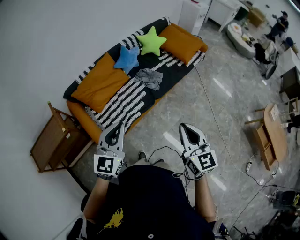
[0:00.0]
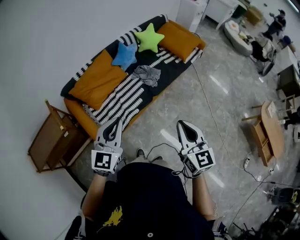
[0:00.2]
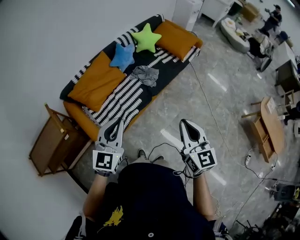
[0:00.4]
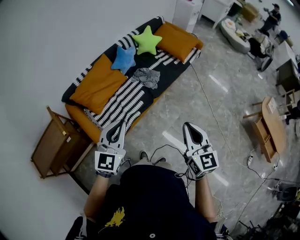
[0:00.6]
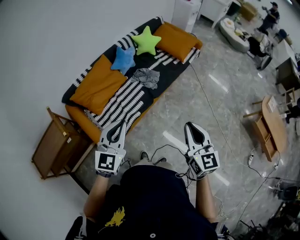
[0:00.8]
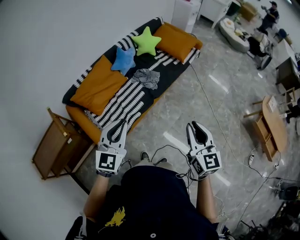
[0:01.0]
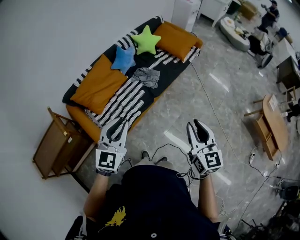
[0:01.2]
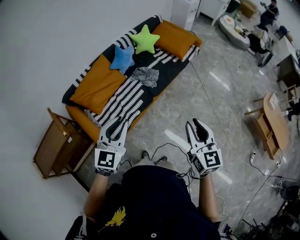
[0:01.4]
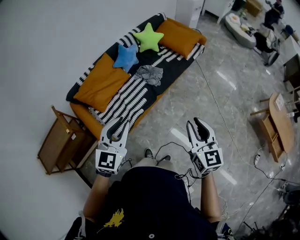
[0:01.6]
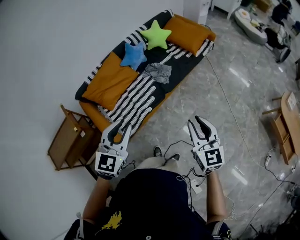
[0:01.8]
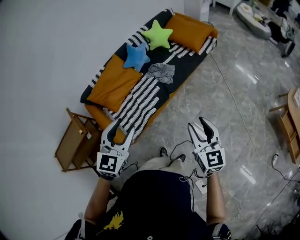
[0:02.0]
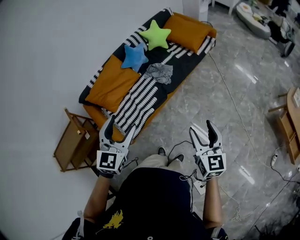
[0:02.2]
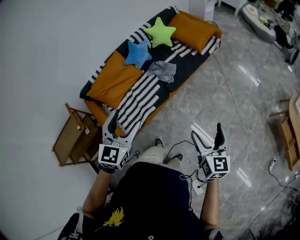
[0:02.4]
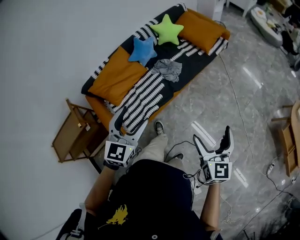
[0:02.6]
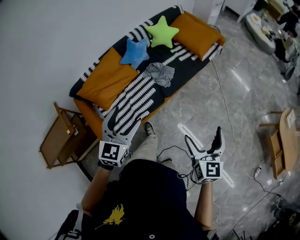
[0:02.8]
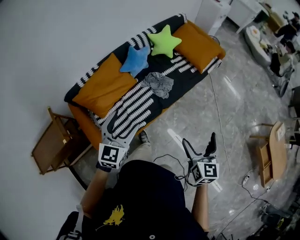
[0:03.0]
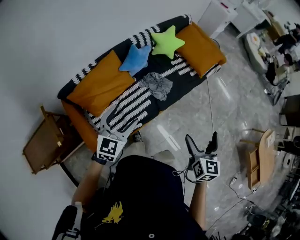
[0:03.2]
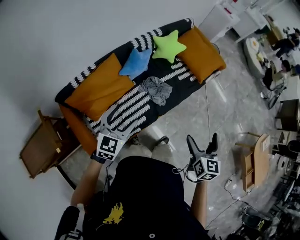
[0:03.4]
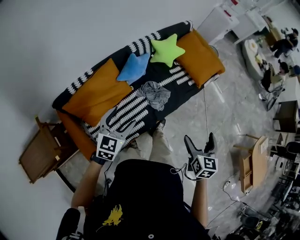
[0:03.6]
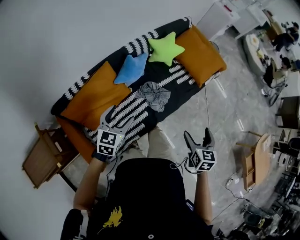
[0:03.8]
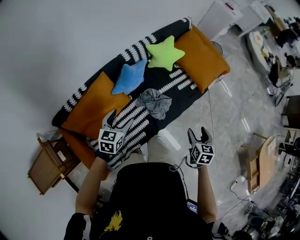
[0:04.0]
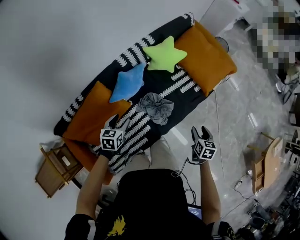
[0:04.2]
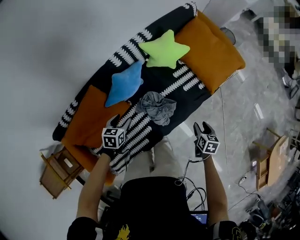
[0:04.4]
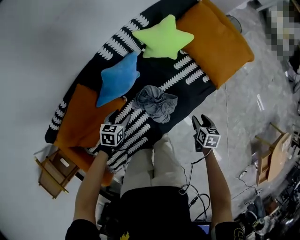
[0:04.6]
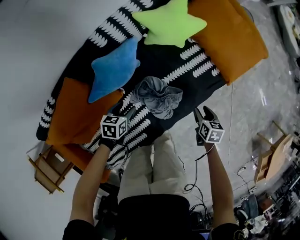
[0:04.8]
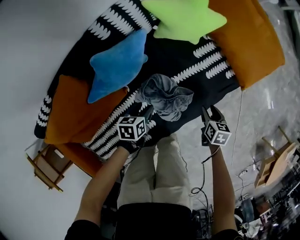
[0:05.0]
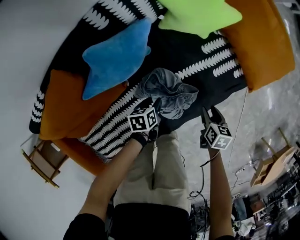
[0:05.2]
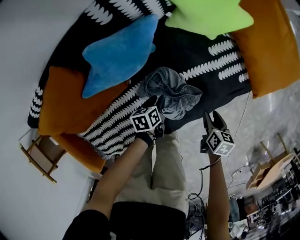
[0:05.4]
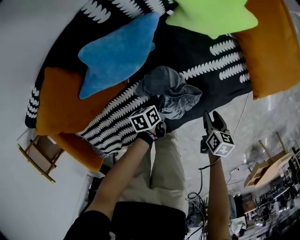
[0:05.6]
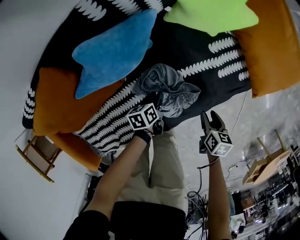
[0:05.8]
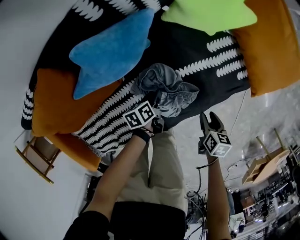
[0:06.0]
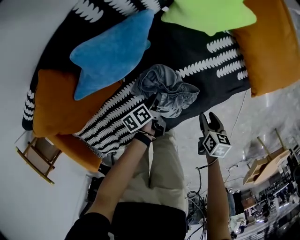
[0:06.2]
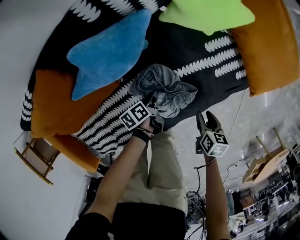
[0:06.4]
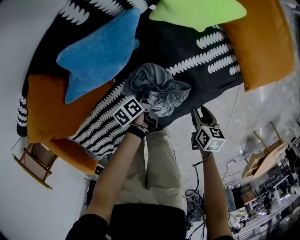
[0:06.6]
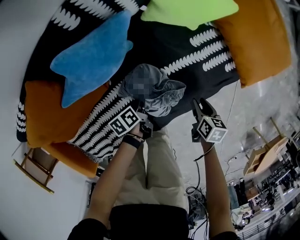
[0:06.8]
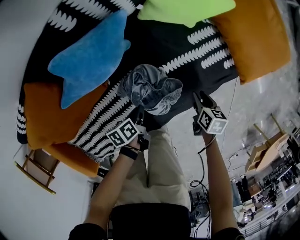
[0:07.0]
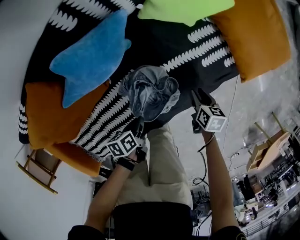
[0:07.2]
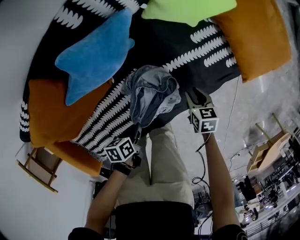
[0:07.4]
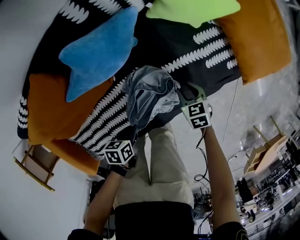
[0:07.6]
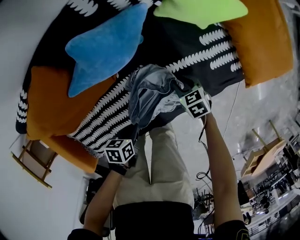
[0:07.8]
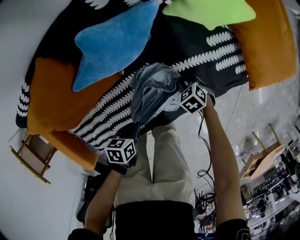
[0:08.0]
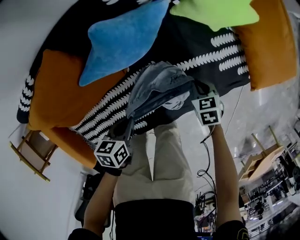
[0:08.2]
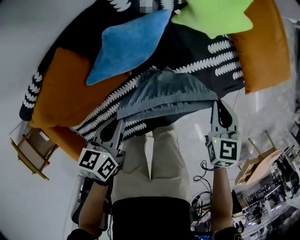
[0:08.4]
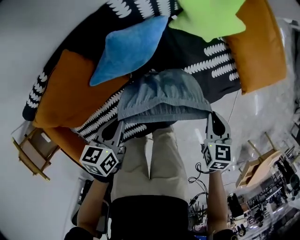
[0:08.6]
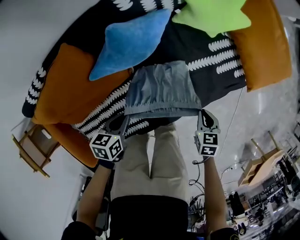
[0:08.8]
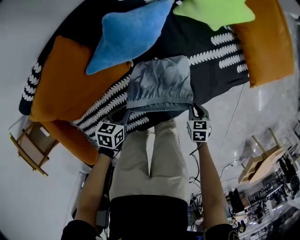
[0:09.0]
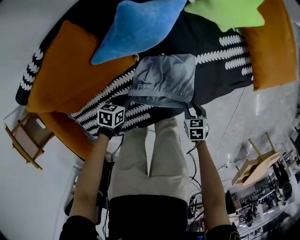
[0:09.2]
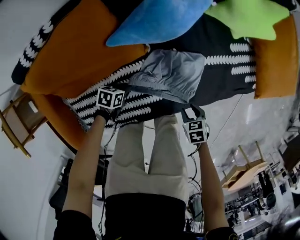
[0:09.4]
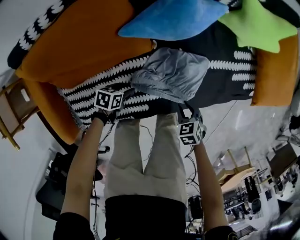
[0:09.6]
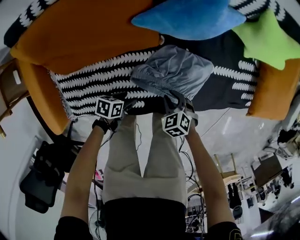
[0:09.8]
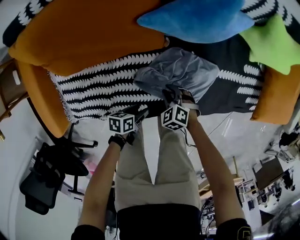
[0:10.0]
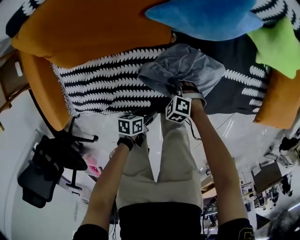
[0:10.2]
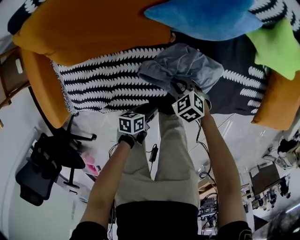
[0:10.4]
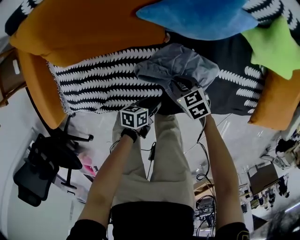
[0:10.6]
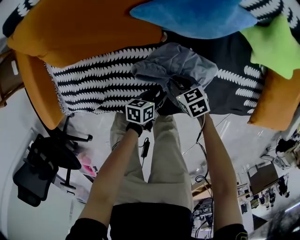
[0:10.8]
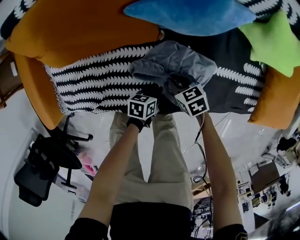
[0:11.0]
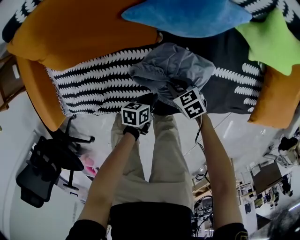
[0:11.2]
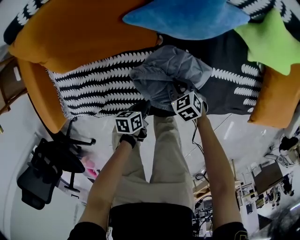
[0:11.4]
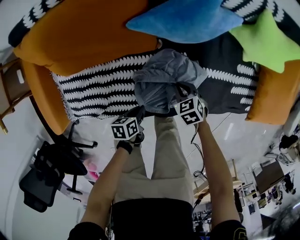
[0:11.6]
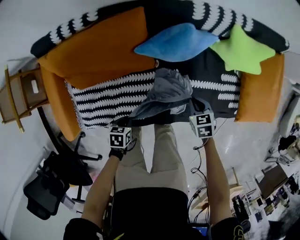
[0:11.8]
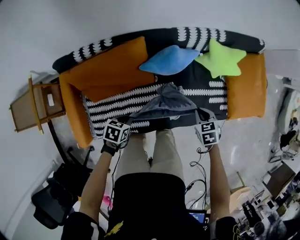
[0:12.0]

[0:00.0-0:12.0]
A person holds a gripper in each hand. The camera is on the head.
0:00.0 to 0:01.6: The right gripper goes approximately 5 cm to the right.
0:01.6 to 0:03.0: Both grippers travel together forward, roughly 25 cm. The left gripper opens; the right gripper opens up.
0:03.0 to 0:04.4: Both grippers are carried forward, roughly 50 cm. Both grippers travel together downward, about 35 cm. The right gripper points its fingers about 40 degrees further downward, and closes its fingers; the left gripper points its fingers roughly 30 degrees further downward.
0:04.4 to 0:06.0: Both grippers travel together downward, about 35 cm. The left gripper twists approximately 60 degrees counterclockwise, seen from behind.
0:06.0 to 0:07.6: The right gripper moves to the left and forward, roughly 15 cm, and turns by some 40 degrees. The left gripper shifts about 15 cm backward and upward, and turns by some 20 degrees.
0:07.6 to 0:09.0: The left gripper reaches about 20 cm upward, then returns, and changes its angle by approximately 20 degrees, while the right gripper moves up and down over about 25 cm, changing direction 2 times.
0:09.0 to 0:10.4: The right gripper changes place by some 25 cm, and rolls counterclockwise, seen from behind, by about 60 degrees. Meanwhile the left gripper changes place by roughly 20 cm, rotates around the line of its fingers by roughly 40 degrees, counterclockwise from behind, and opens up.
0:10.4 to 0:12.0: The grippers both shift upward by roughly 30 cm. The left gripper changes its angle by approximately 40 degrees, and closes. The right gripper turns by some 40 degrees.

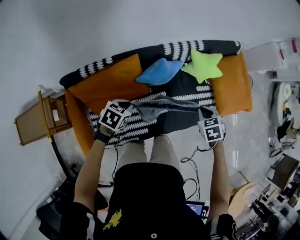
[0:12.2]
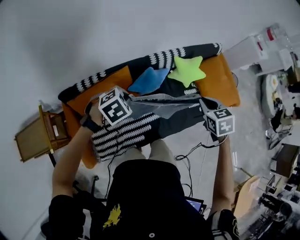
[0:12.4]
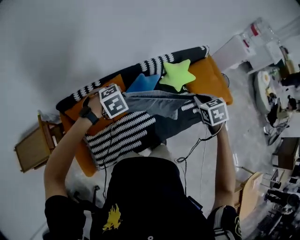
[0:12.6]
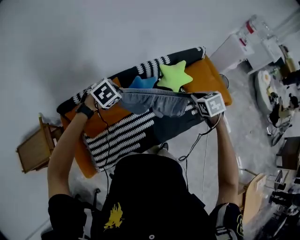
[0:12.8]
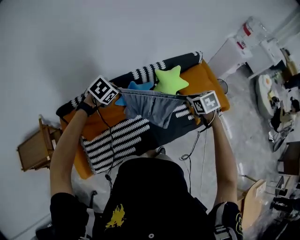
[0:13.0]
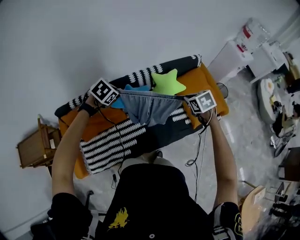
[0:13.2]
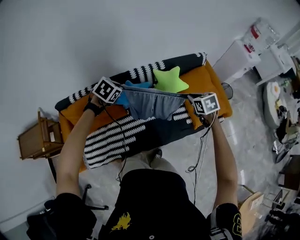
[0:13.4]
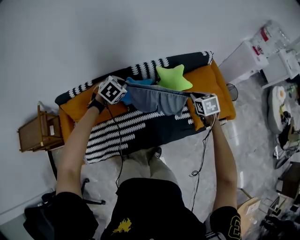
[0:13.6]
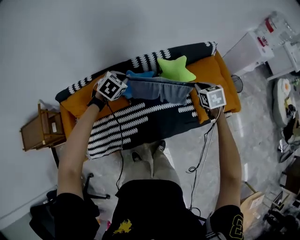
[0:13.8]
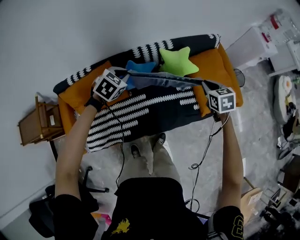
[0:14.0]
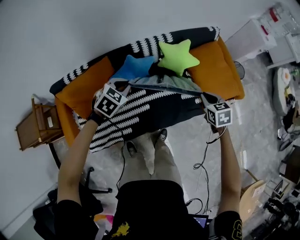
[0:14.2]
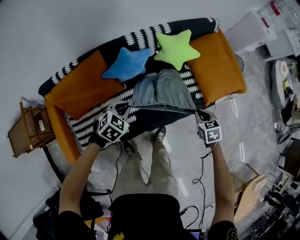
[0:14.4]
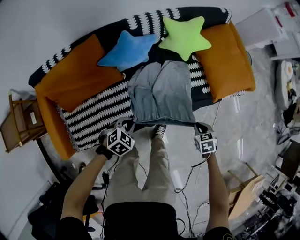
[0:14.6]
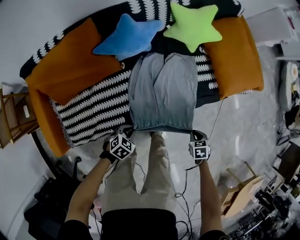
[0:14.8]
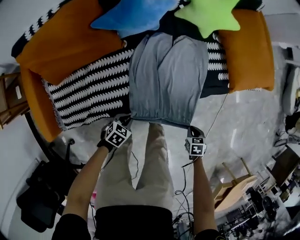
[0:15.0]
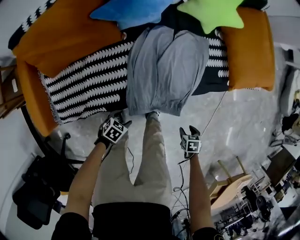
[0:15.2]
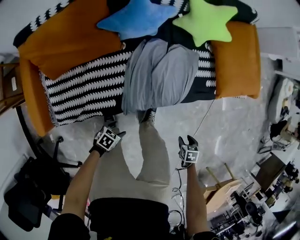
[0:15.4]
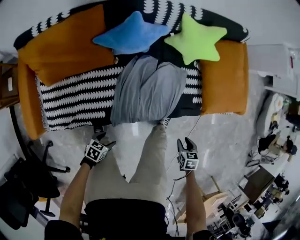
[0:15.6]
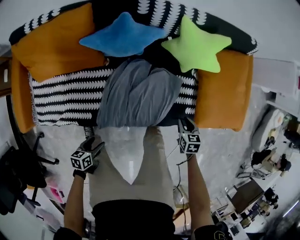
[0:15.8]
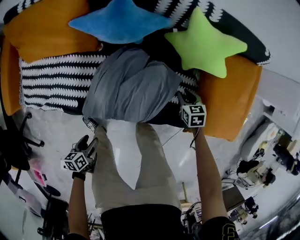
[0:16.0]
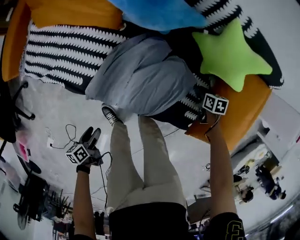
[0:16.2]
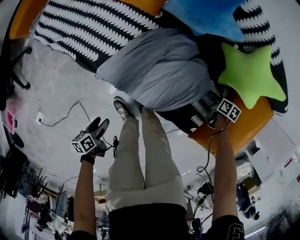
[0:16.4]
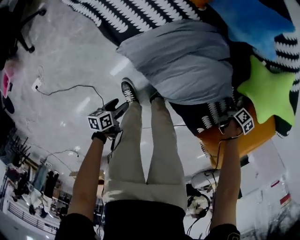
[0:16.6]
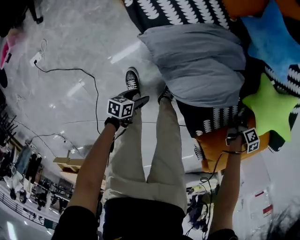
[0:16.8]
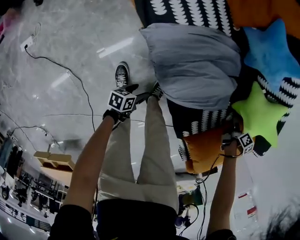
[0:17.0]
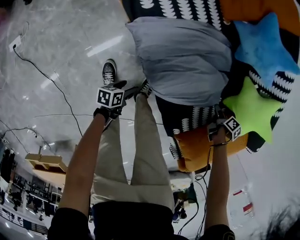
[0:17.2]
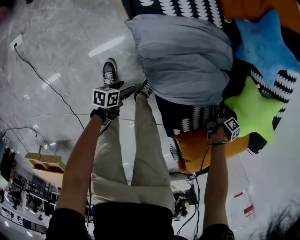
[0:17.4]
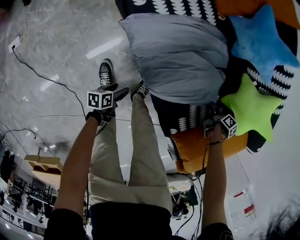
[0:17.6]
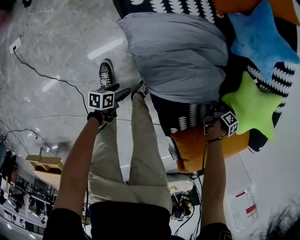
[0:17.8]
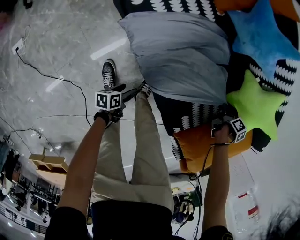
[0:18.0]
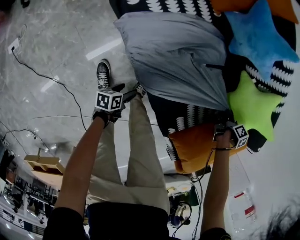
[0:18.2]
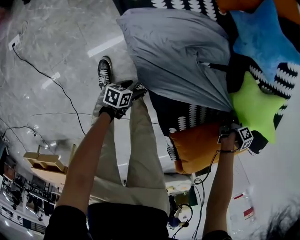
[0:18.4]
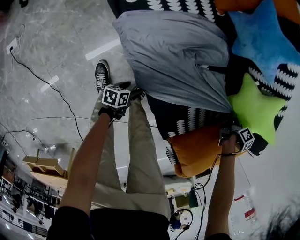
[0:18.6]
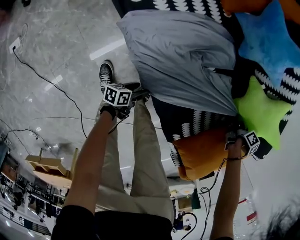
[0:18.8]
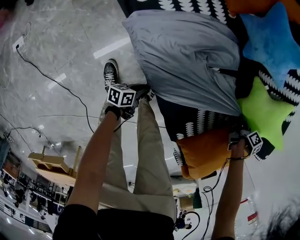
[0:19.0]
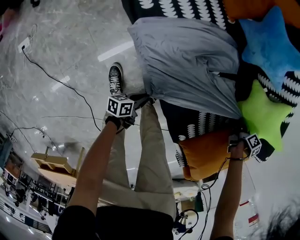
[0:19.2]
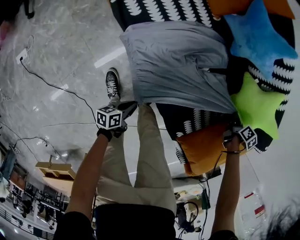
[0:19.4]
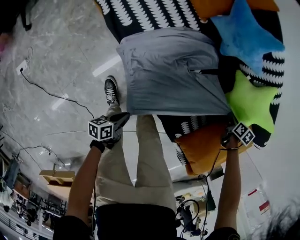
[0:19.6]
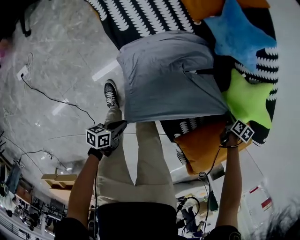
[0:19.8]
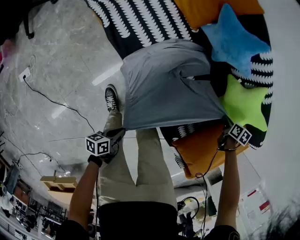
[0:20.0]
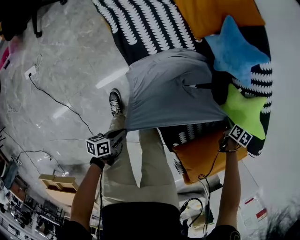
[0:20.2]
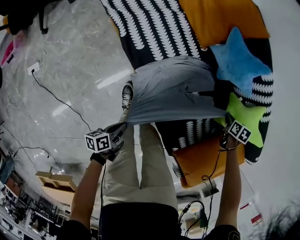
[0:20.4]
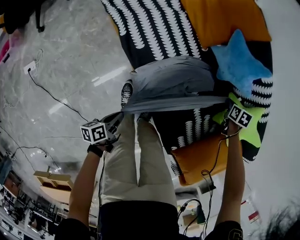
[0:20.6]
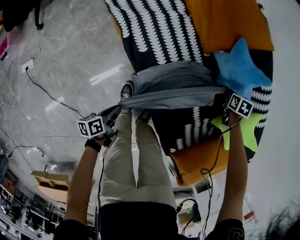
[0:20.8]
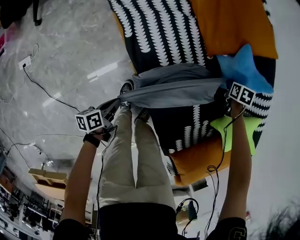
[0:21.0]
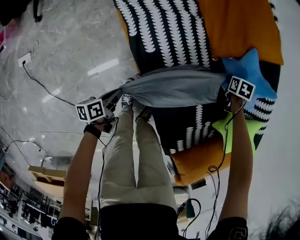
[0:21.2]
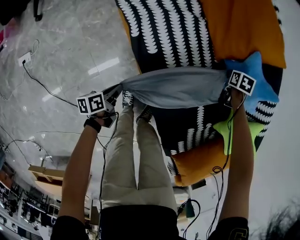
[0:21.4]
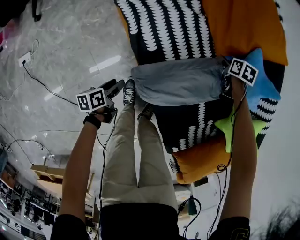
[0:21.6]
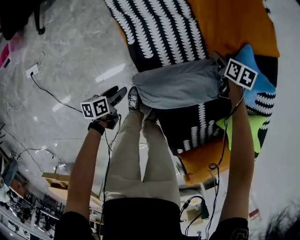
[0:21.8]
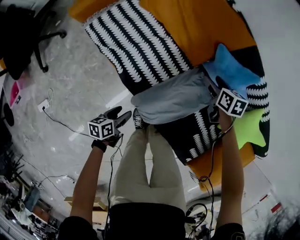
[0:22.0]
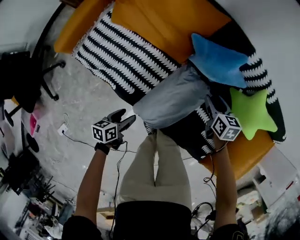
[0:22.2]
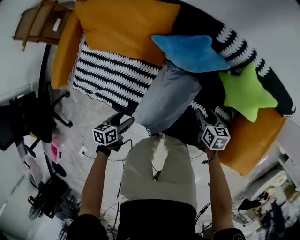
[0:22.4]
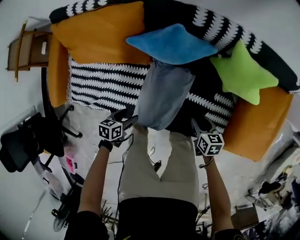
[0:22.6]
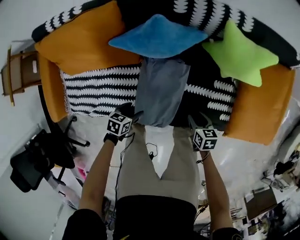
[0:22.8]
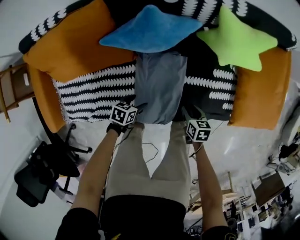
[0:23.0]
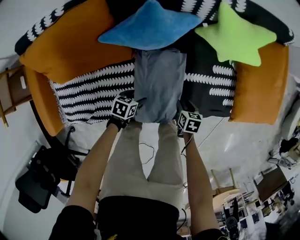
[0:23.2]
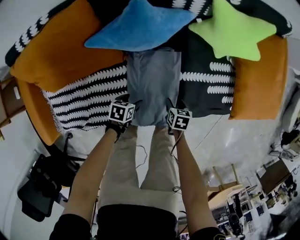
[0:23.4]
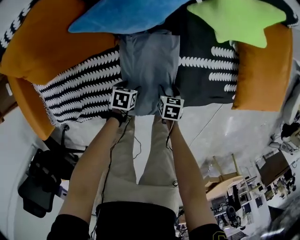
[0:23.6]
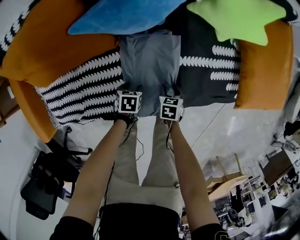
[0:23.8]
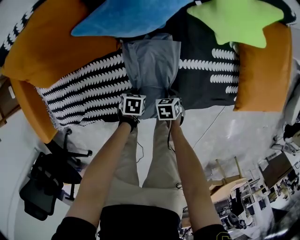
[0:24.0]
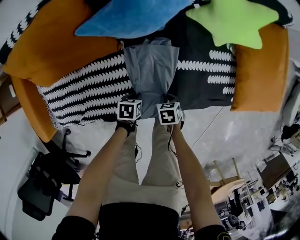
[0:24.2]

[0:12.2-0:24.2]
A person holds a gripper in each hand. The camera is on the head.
0:12.2 to 0:13.8: The right gripper travels to the right and forward by roughly 25 cm. Meanwhile the left gripper heads to the right, forward and upward, covering roughly 30 cm, and changes its angle by about 30 degrees.
0:13.8 to 0:15.2: The pair of grippers is taken some 50 cm. Both grippers travel together downward, approximately 50 cm. The right gripper angles its fingers downward, by approximately 30 degrees, and opens up. Meanwhile the left gripper changes its angle by approximately 40 degrees, and opens up.
0:15.2 to 0:16.6: The right gripper travels upward and back again, roughly 15 cm each way, and closes its fingers. Meanwhile the left gripper reaches some 10 cm upward, then returns, and rolls counterclockwise, seen from behind, by some 100 degrees.
0:16.6 to 0:18.2: The right gripper moves up and down over about 10 cm, changing direction 2 times. Meanwhile the left gripper shifts by approximately 15 cm.
0:18.2 to 0:19.8: The left gripper heads upward, covering some 15 cm, and closes up. Meanwhile the right gripper travels upward by roughly 5 cm, and swivels some 40 degrees.
0:19.8 to 0:21.2: The right gripper moves approximately 40 cm, and swivels approximately 40 degrees. The left gripper reaches some 5 cm upward, then returns, and changes its angle by about 30 degrees.
0:21.2 to 0:22.6: The left gripper moves approximately 30 cm, rotates around the line of its fingers by roughly 70 degrees, clockwise from behind, and opens up. The right gripper ends up some 30 cm from where it was, and rotates around the line of its fingers by roughly 60 degrees, clockwise from behind.
0:22.6 to 0:24.2: Both grippers travel together downward, some 15 cm. The right gripper turns by some 30 degrees; the left gripper turns by some 20 degrees, and closes up.
